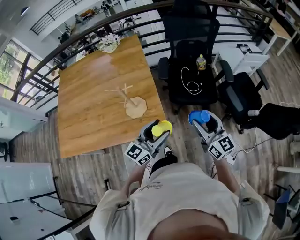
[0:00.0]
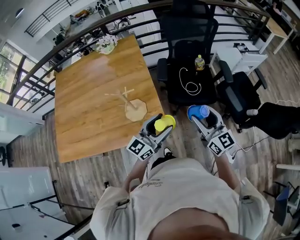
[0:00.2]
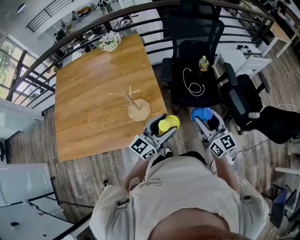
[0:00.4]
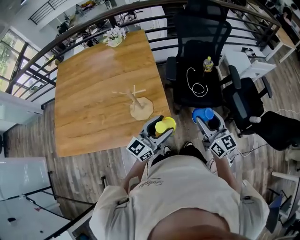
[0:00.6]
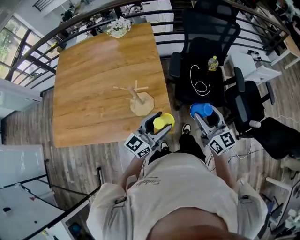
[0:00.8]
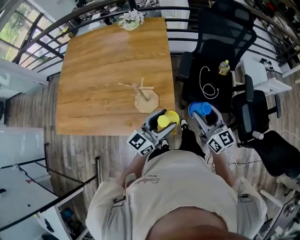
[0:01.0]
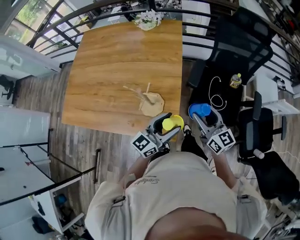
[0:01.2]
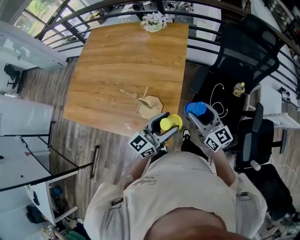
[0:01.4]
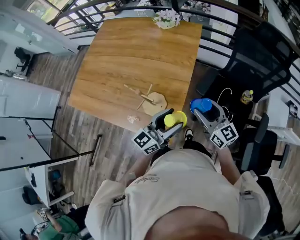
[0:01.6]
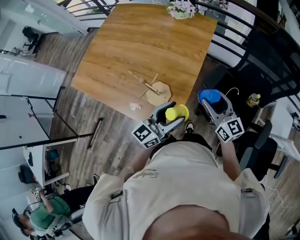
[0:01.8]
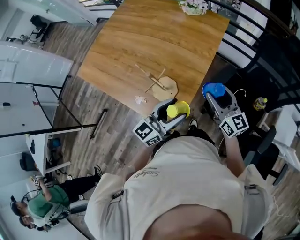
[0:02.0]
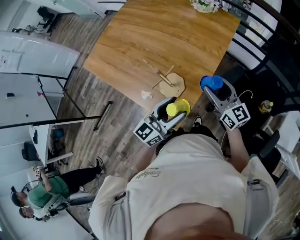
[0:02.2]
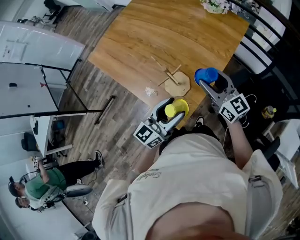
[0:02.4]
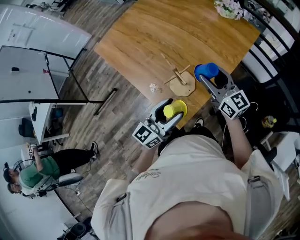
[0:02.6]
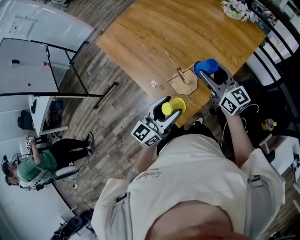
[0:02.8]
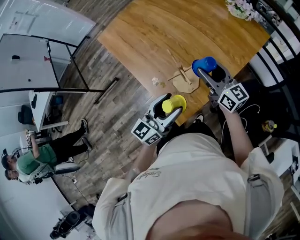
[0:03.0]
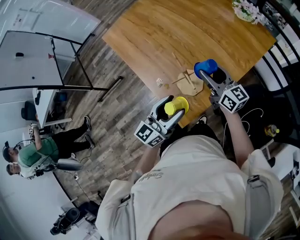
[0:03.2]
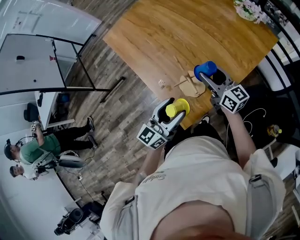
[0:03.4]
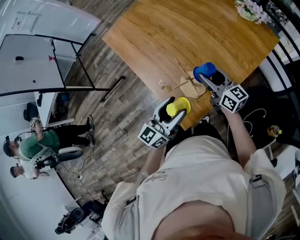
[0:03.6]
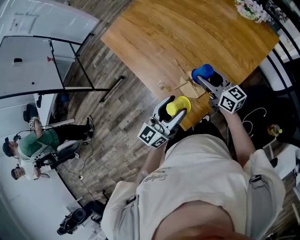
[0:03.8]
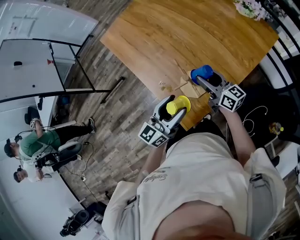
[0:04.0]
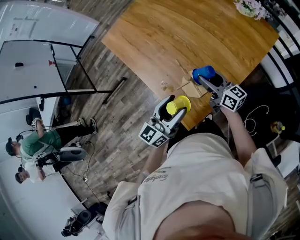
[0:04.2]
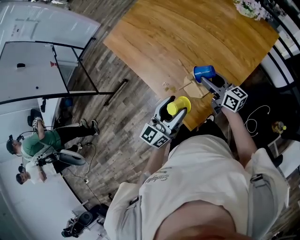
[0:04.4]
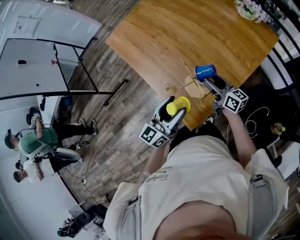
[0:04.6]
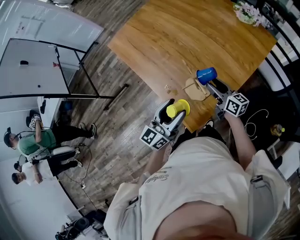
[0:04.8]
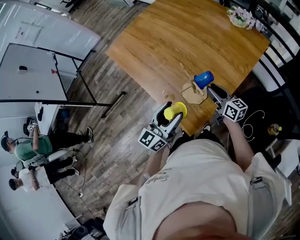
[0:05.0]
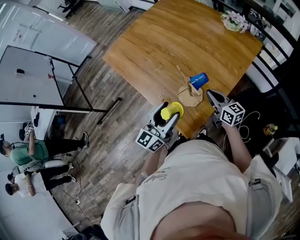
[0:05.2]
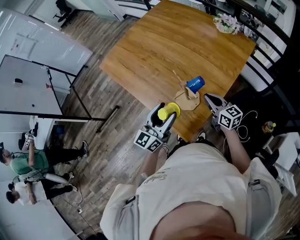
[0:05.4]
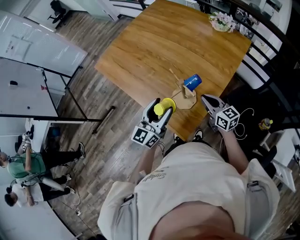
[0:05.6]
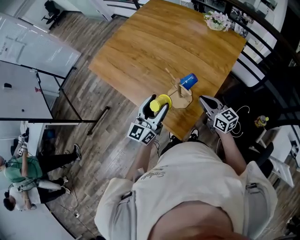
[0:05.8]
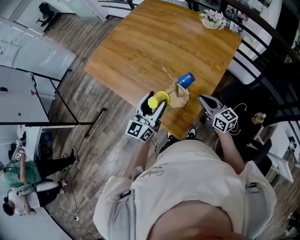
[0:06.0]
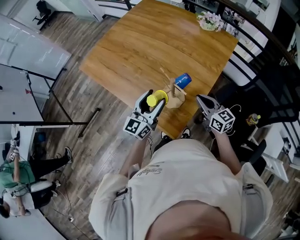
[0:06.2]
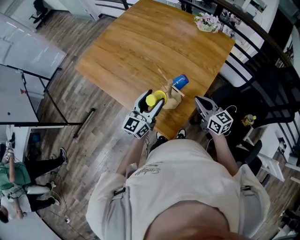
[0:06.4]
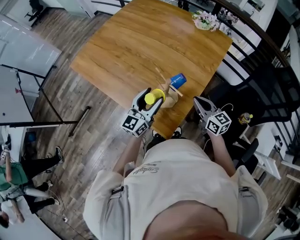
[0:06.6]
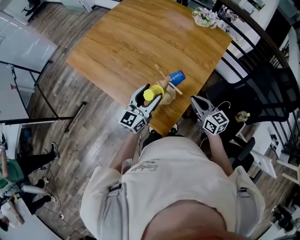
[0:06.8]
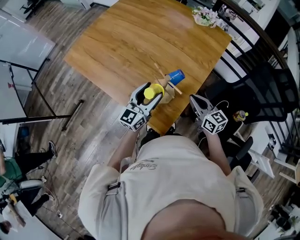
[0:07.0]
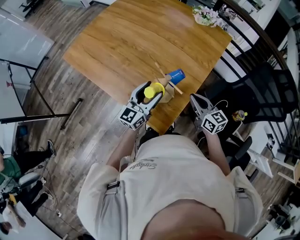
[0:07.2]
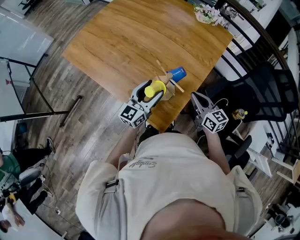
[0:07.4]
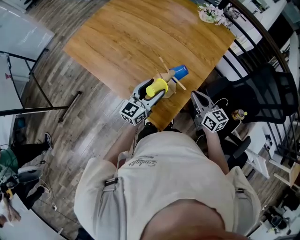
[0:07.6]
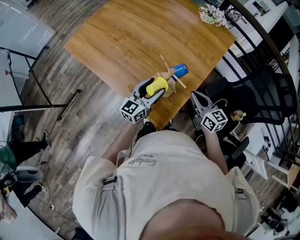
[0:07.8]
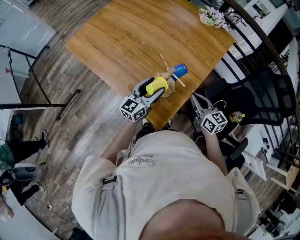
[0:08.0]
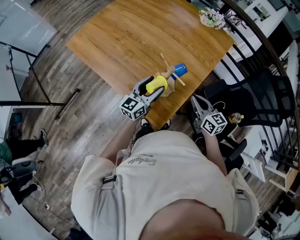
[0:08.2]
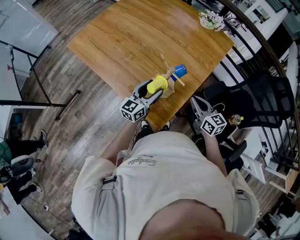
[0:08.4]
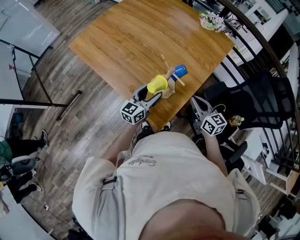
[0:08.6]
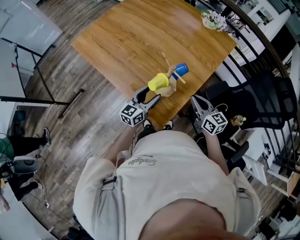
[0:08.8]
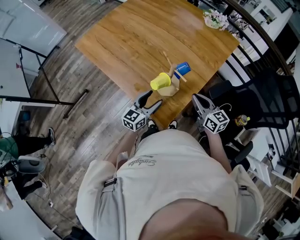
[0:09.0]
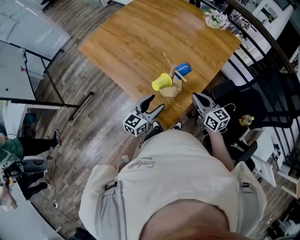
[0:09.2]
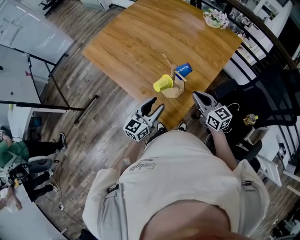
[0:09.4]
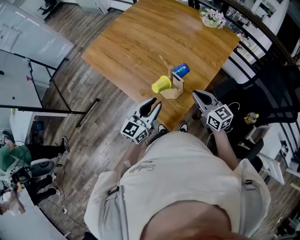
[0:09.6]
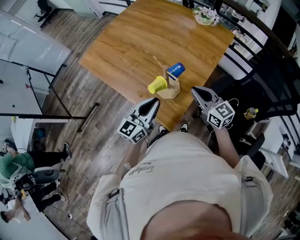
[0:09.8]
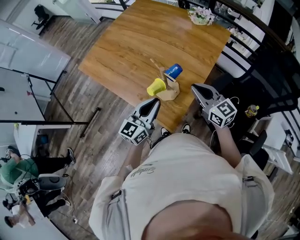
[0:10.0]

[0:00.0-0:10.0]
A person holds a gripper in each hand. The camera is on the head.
0:00.0 to 0:01.4: The right gripper shifts by about 25 cm, and swivels approximately 30 degrees. The left gripper shifts by about 15 cm, and changes its angle by approximately 20 degrees.
0:01.4 to 0:02.8: The right gripper shifts by about 20 cm, and swivels about 40 degrees, while the left gripper moves some 10 cm, and rotates approximately 40 degrees.
0:02.8 to 0:04.2: The right gripper is displaced downward by some 10 cm, and changes its angle by approximately 20 degrees. The left gripper changes place by some 5 cm.
0:04.2 to 0:05.8: The left gripper changes place by roughly 5 cm. The right gripper is displaced backward by some 10 cm, rotates approximately 20 degrees, and closes its fingers.
0:05.8 to 0:07.2: The left gripper travels downward by some 5 cm.
0:07.2 to 0:08.6: The left gripper heads downward, covering about 5 cm.
0:08.6 to 0:10.0: The left gripper travels upward and backward by roughly 15 cm, and closes its fingers, while the right gripper goes roughly 10 cm upward.

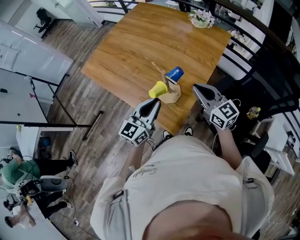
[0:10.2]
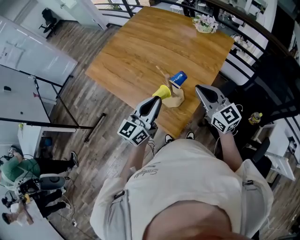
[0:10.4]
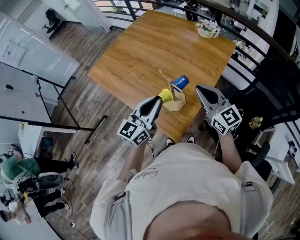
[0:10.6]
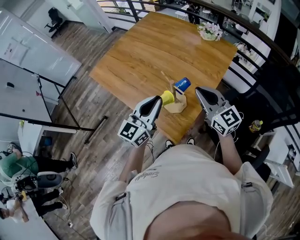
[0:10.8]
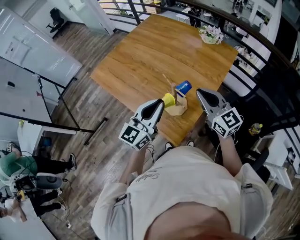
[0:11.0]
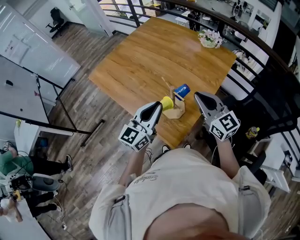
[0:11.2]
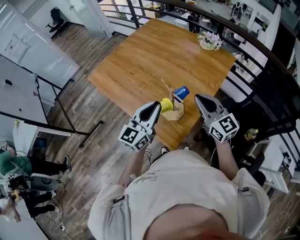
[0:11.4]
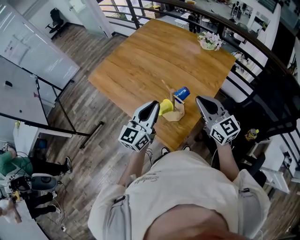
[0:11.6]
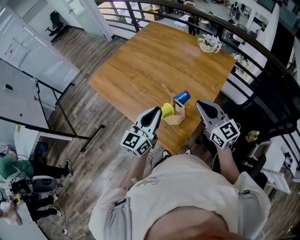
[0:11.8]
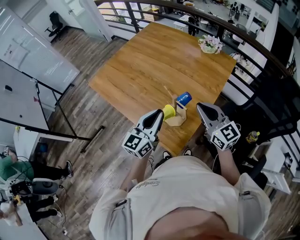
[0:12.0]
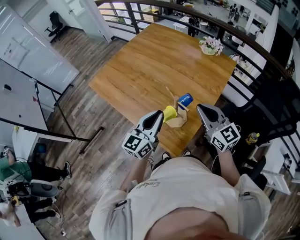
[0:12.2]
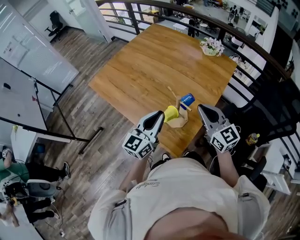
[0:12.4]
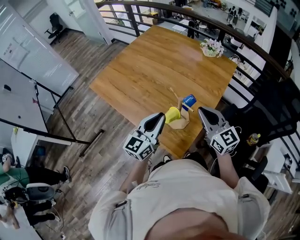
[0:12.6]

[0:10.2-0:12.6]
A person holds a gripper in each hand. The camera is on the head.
0:10.2 to 0:11.4: The left gripper heads upward, covering some 5 cm; the right gripper changes place by about 5 cm.
0:11.4 to 0:12.6: There are only small adjustments of the grippers.

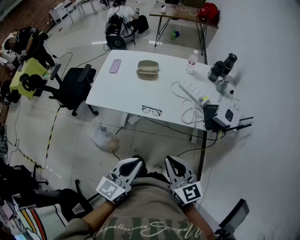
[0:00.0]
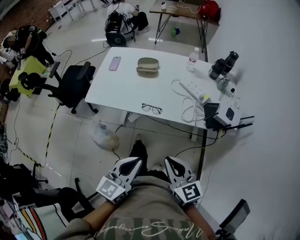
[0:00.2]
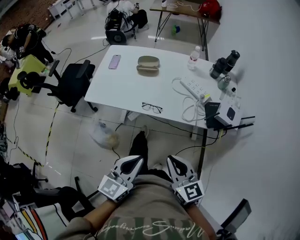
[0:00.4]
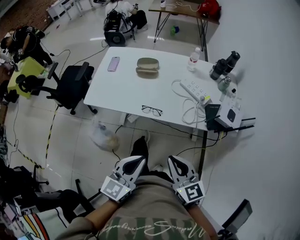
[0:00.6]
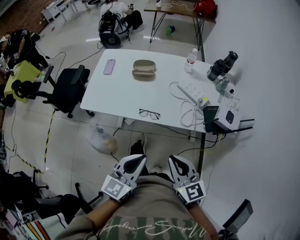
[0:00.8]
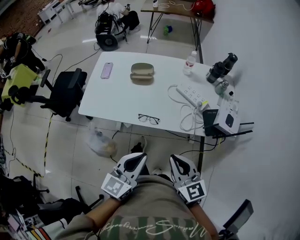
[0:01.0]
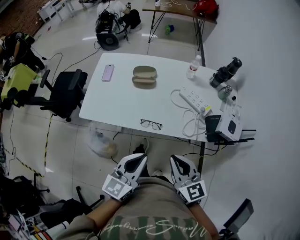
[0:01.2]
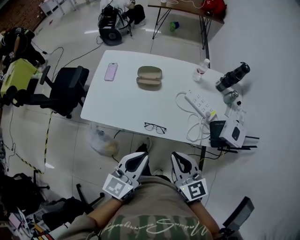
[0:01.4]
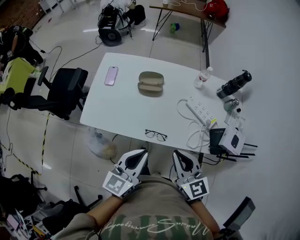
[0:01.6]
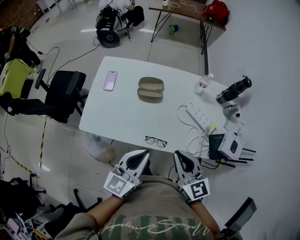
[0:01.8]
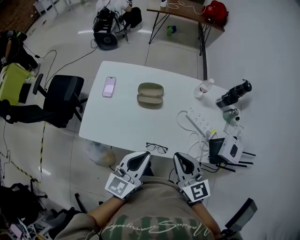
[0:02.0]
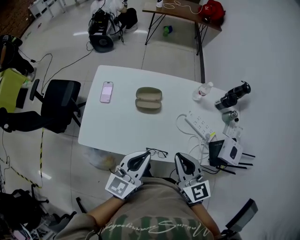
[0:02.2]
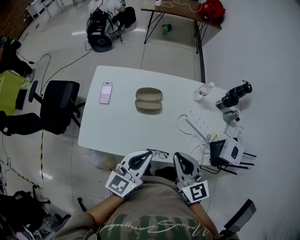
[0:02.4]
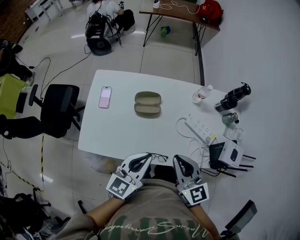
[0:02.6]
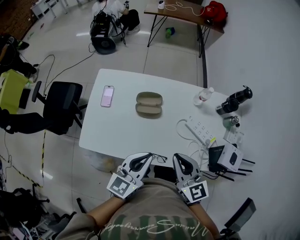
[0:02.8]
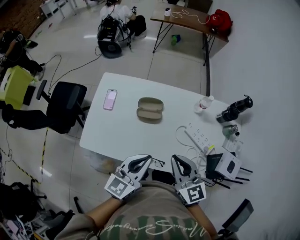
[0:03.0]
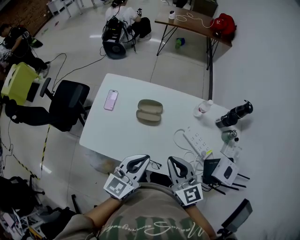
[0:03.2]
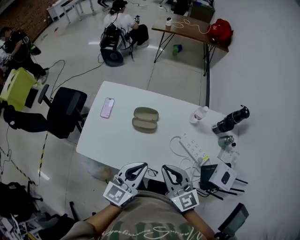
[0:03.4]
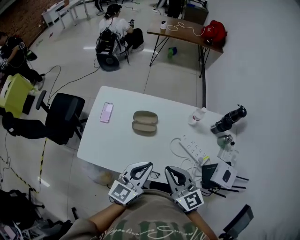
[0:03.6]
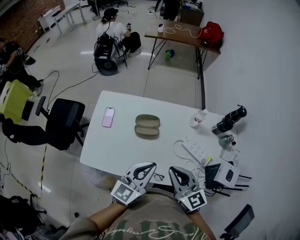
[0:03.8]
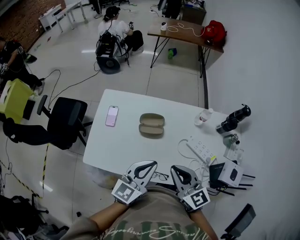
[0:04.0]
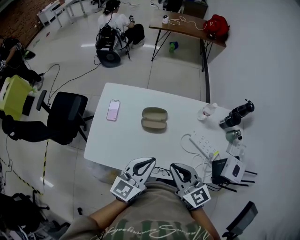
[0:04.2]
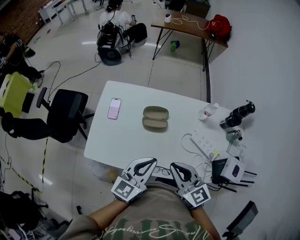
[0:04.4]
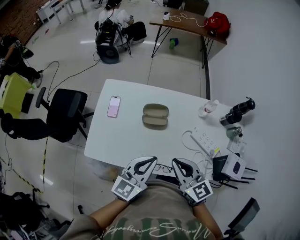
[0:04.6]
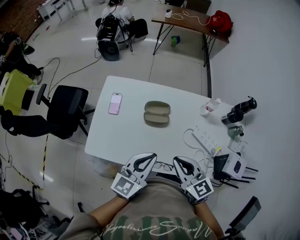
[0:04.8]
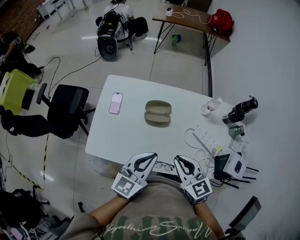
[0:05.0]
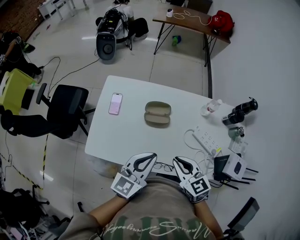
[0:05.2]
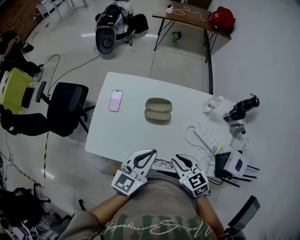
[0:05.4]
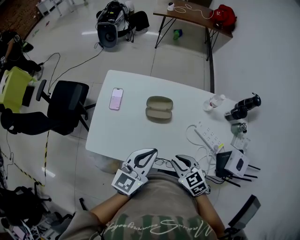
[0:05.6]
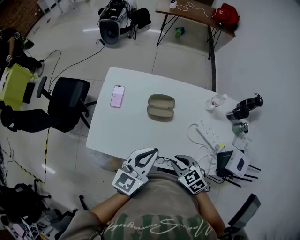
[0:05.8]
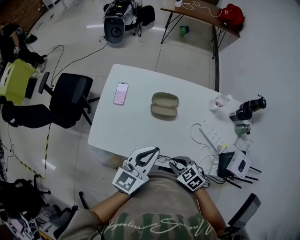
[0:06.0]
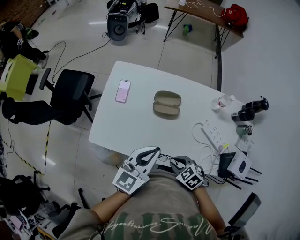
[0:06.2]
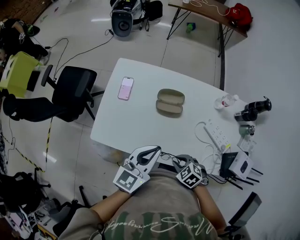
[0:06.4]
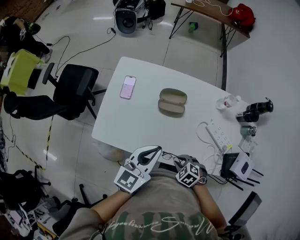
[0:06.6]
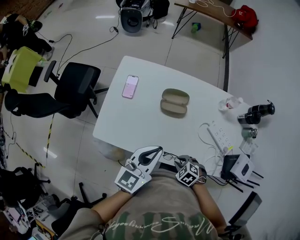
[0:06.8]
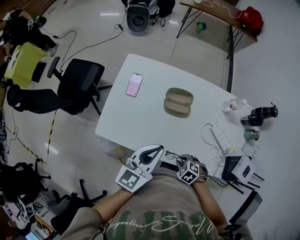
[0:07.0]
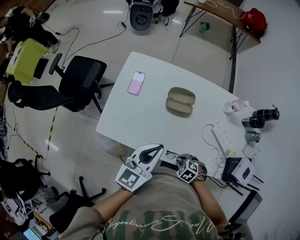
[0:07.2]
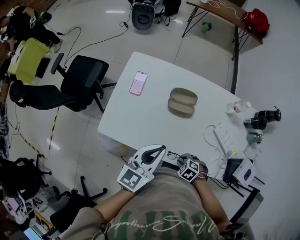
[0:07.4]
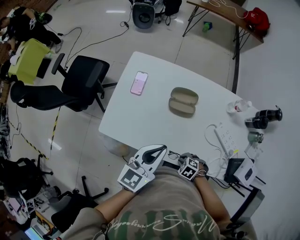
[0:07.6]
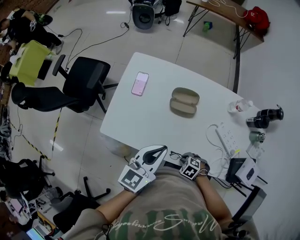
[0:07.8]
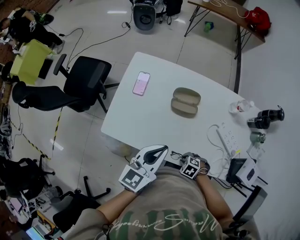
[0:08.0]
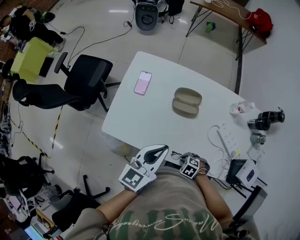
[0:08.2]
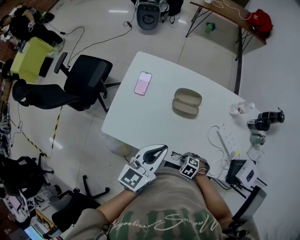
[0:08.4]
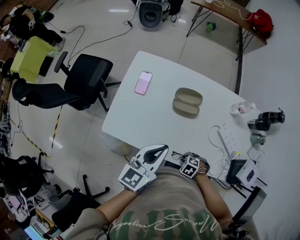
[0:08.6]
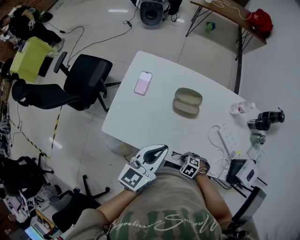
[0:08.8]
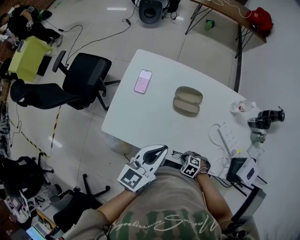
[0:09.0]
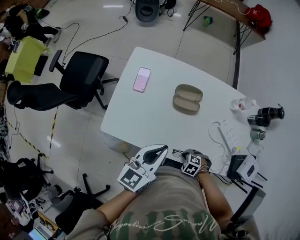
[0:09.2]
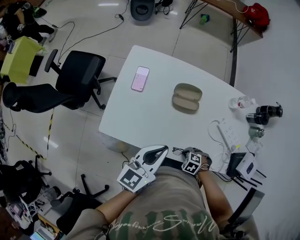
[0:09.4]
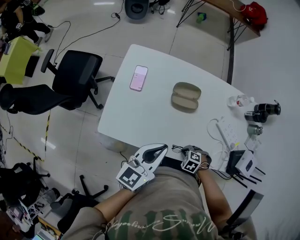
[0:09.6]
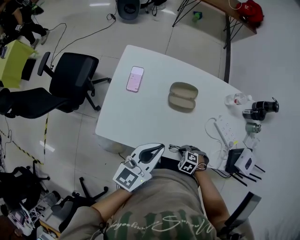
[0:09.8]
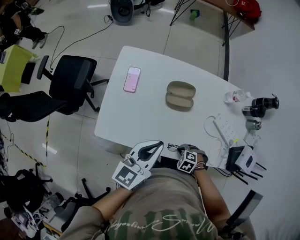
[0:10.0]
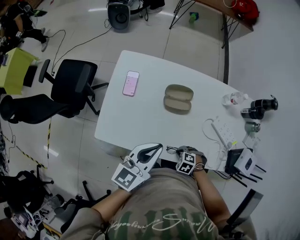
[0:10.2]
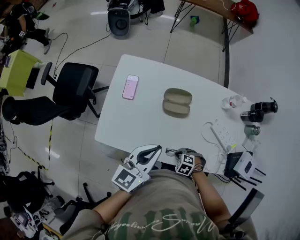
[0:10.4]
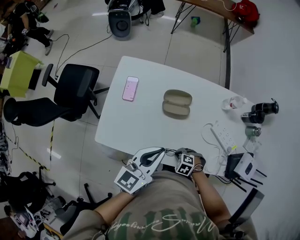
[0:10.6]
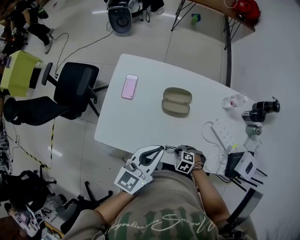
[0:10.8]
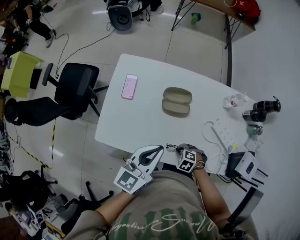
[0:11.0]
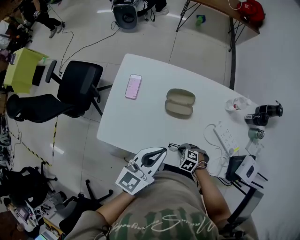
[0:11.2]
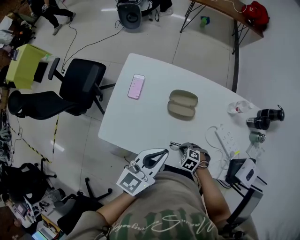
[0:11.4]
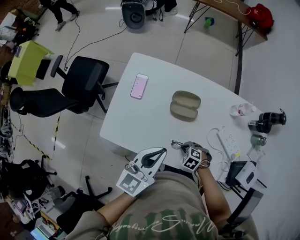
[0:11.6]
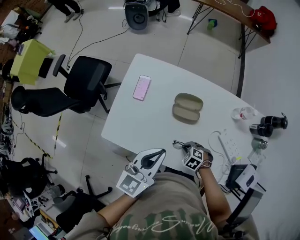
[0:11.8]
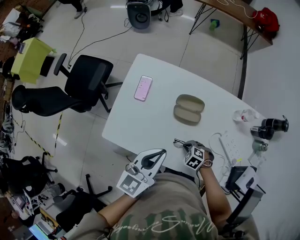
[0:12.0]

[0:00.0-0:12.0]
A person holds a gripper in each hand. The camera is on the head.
0:00.0 to 0:01.6: Both grippers move forward, approximately 25 cm.
0:01.6 to 0:03.0: Both grippers travel together forward, some 15 cm.
0:03.0 to 0:04.4: The right gripper shifts by approximately 5 cm.
0:04.4 to 0:06.0: The right gripper heads downward, covering roughly 15 cm, and tilts its fingers about 40 degrees downward.
0:06.0 to 0:07.6: The right gripper shifts approximately 15 cm downward, and rotates some 30 degrees.
0:07.6 to 0:10.4: The grippers make only small movements.
0:10.4 to 0:12.0: The right gripper moves approximately 10 cm.
